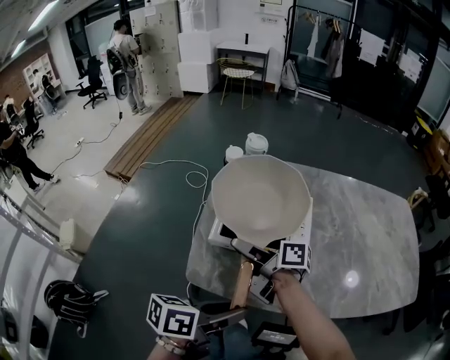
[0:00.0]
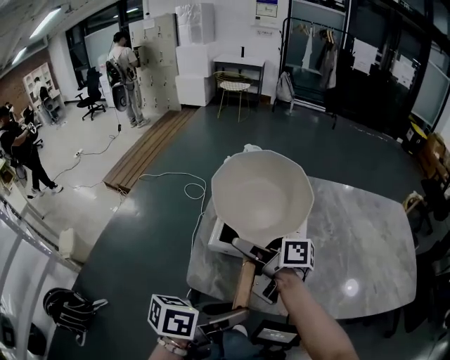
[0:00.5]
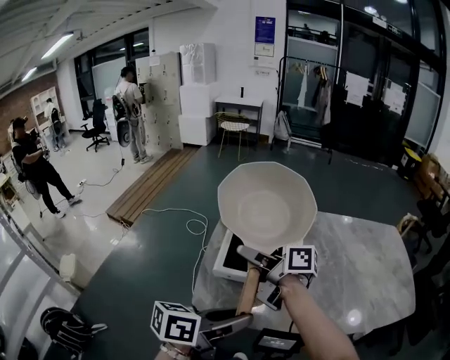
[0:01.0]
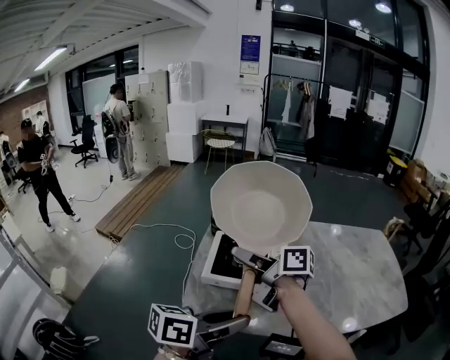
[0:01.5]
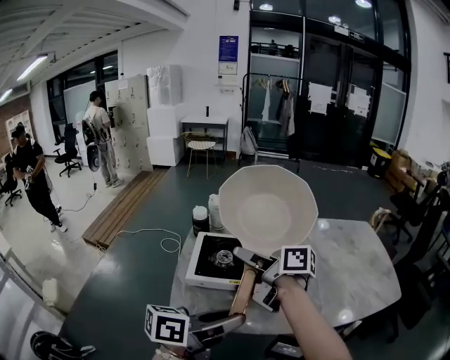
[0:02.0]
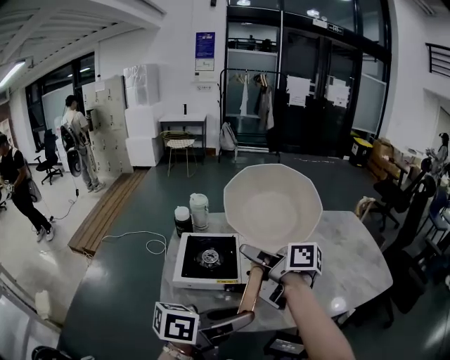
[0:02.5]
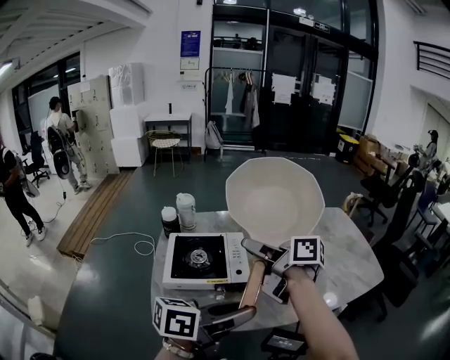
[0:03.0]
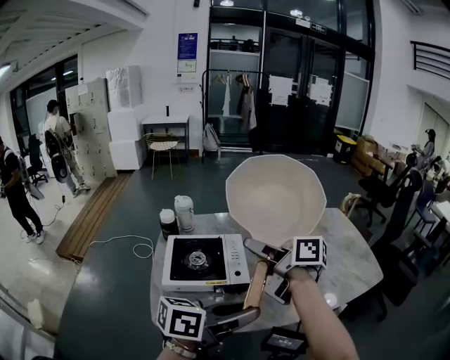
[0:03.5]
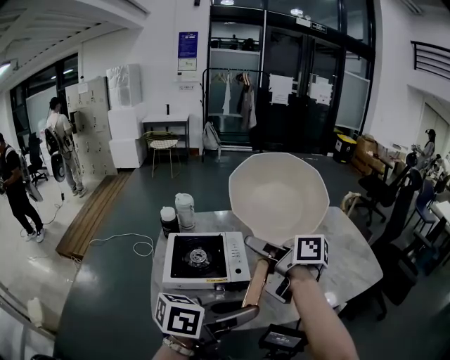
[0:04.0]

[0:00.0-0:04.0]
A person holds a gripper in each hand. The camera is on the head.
0:00.0 to 0:02.0: The right gripper travels upward and to the right by approximately 15 cm, and changes its angle by roughly 20 degrees. Meanwhile the left gripper shifts approximately 10 cm upward, and turns by roughly 20 degrees.
0:02.0 to 0:04.0: The left gripper moves to the right, some 5 cm. Meanwhile the right gripper goes approximately 10 cm to the right.

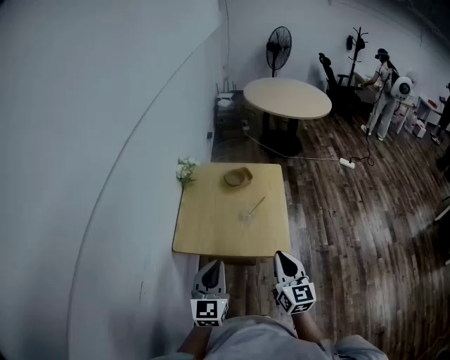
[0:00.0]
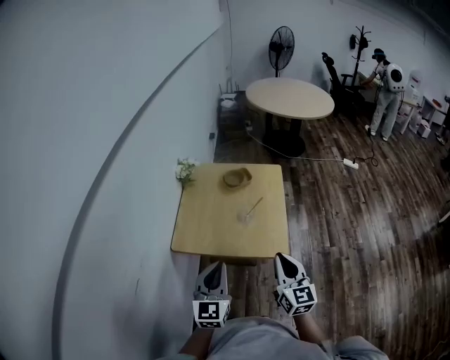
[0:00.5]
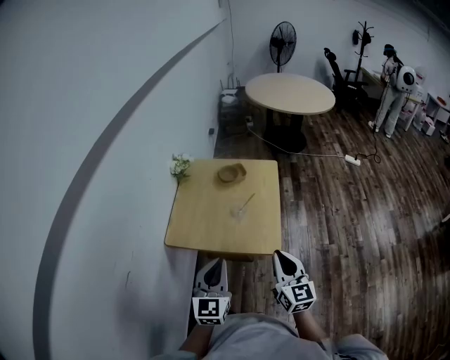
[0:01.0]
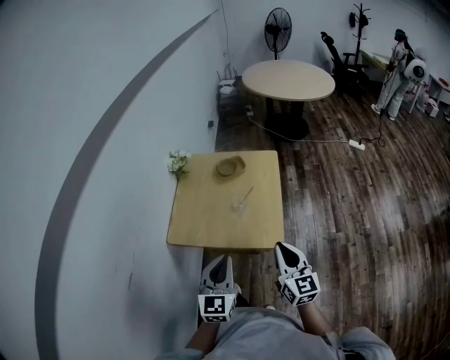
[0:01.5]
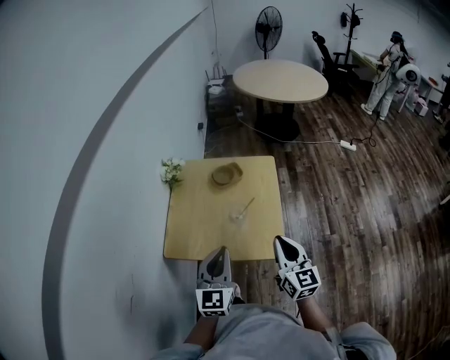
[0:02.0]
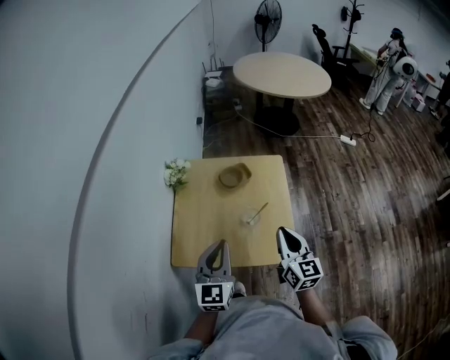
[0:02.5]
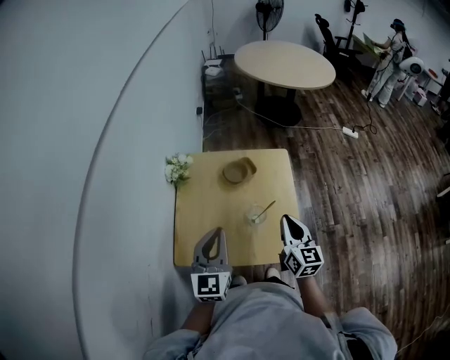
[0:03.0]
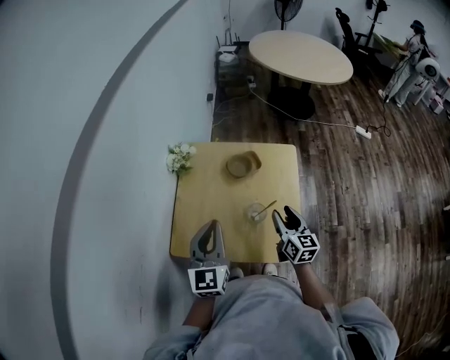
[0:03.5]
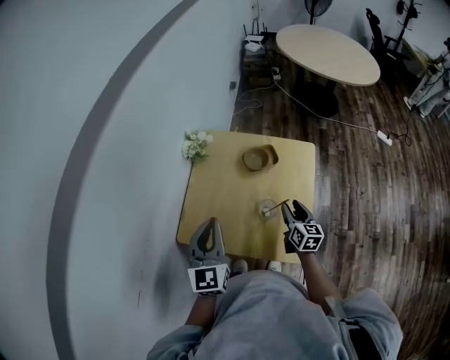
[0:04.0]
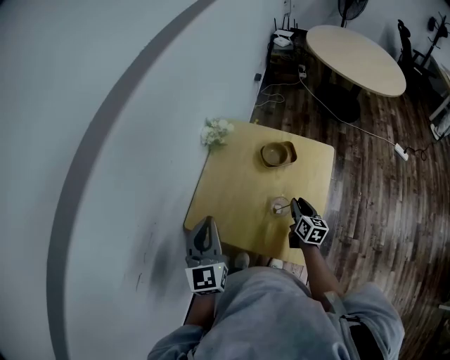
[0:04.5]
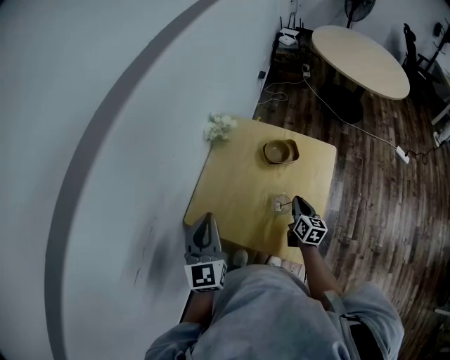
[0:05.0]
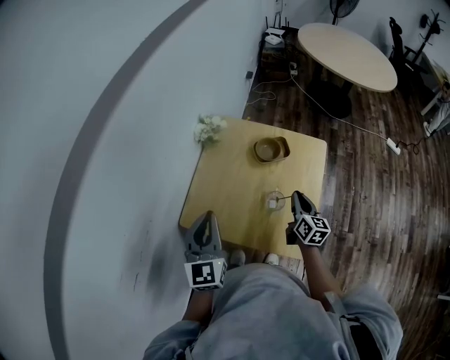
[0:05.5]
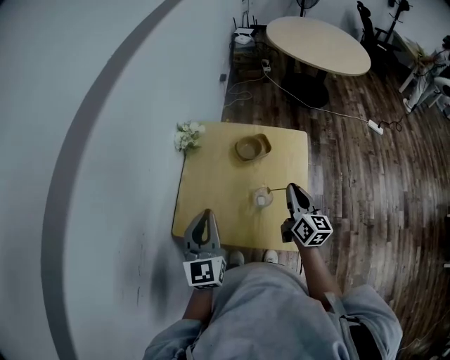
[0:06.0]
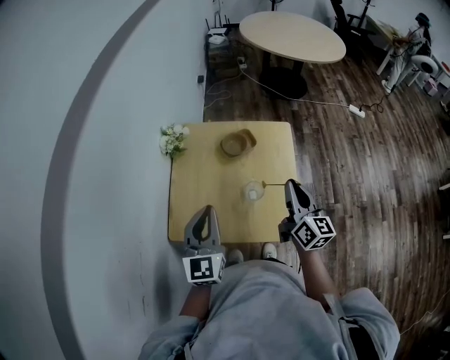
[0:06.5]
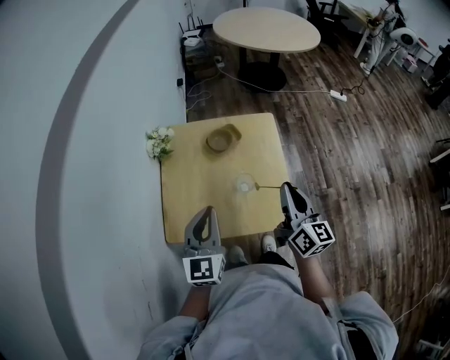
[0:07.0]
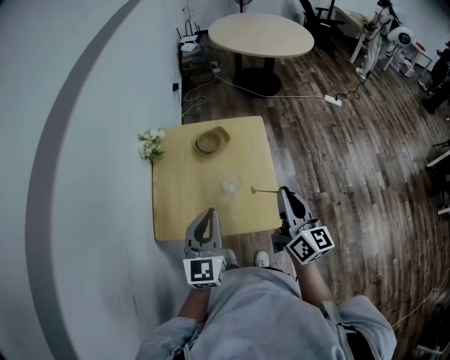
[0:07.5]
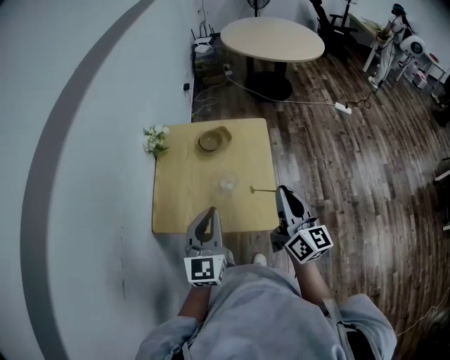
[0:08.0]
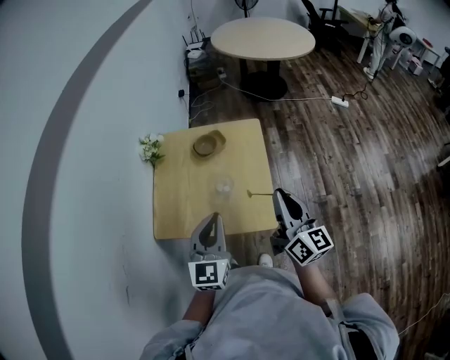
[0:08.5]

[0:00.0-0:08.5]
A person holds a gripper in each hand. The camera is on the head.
0:00.0 to 0:02.0: Both grippers move forward and to the right, roughly 10 cm.
0:02.0 to 0:04.0: The right gripper is displaced forward and downward by some 30 cm, rotates approximately 20 degrees, and opens its fingers, while the left gripper travels forward and to the left by roughly 15 cm.
0:04.0 to 0:06.5: The right gripper moves upward, about 15 cm, swivels about 20 degrees, and closes.
0:06.5 to 0:08.5: The right gripper heads backward, to the right and upward, covering roughly 15 cm, while the left gripper travels to the right and backward by some 15 cm.

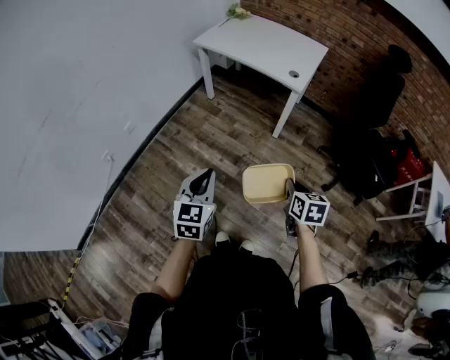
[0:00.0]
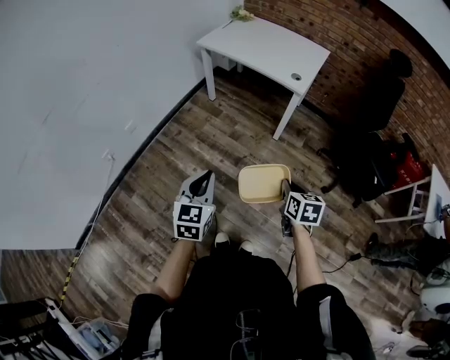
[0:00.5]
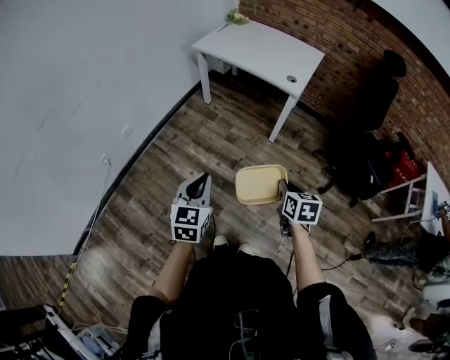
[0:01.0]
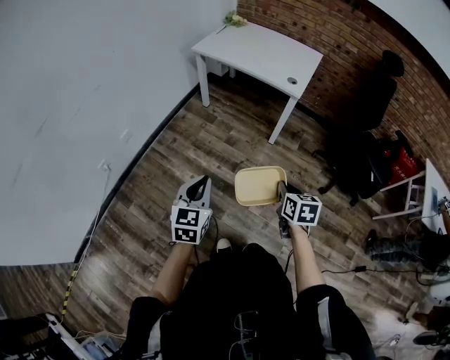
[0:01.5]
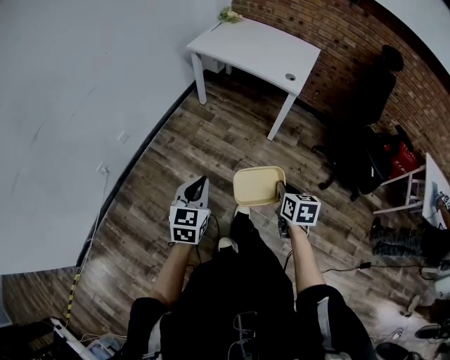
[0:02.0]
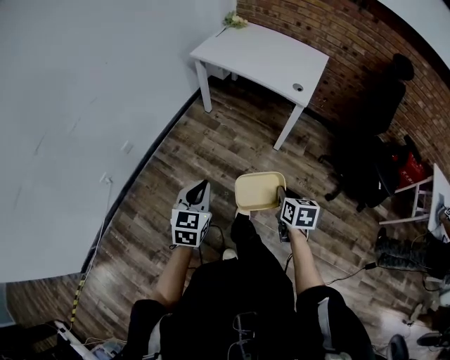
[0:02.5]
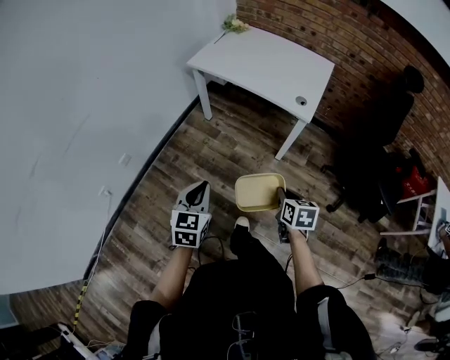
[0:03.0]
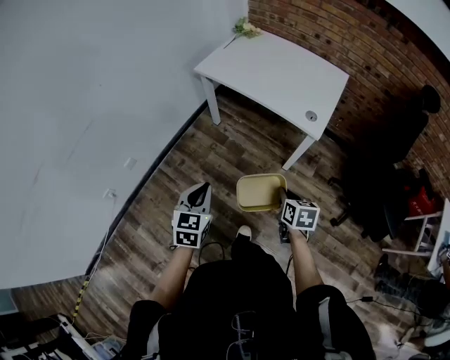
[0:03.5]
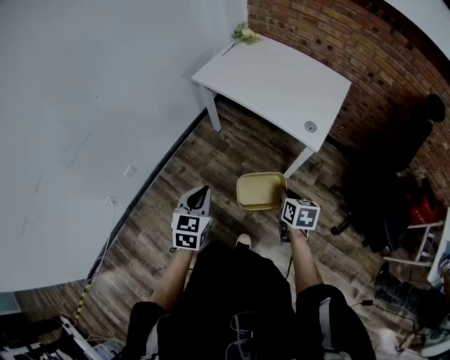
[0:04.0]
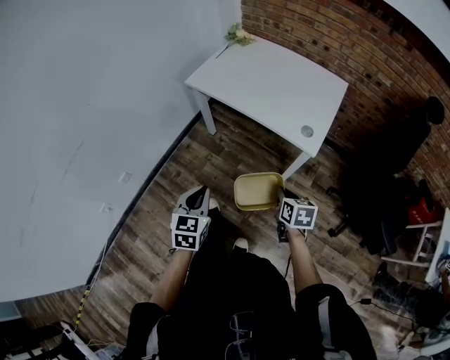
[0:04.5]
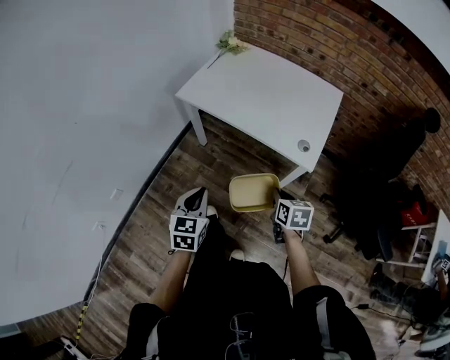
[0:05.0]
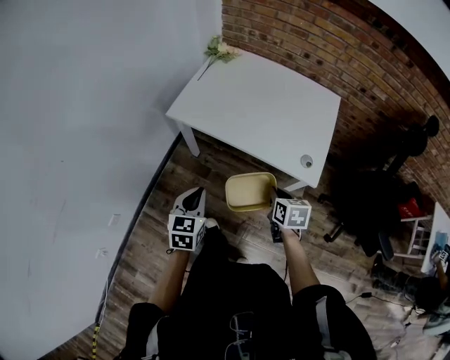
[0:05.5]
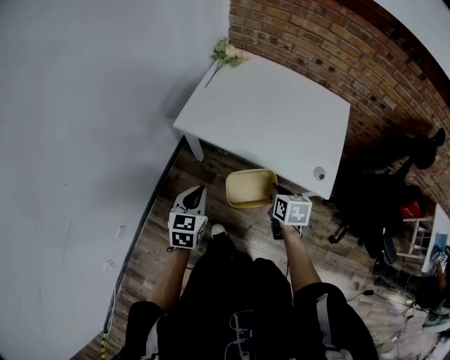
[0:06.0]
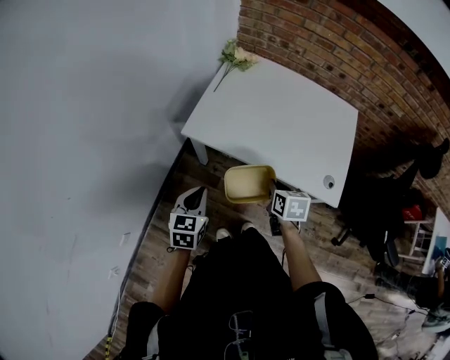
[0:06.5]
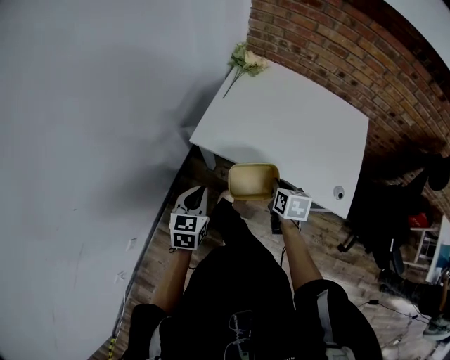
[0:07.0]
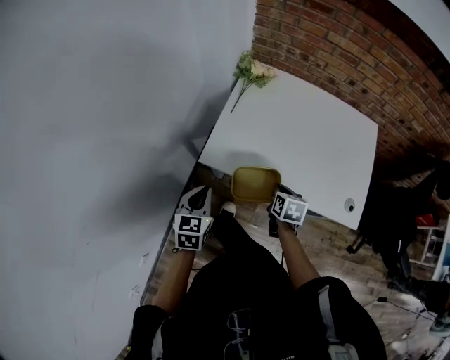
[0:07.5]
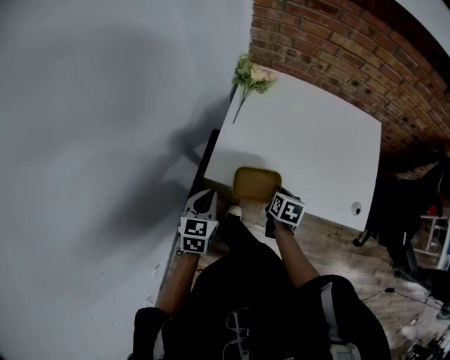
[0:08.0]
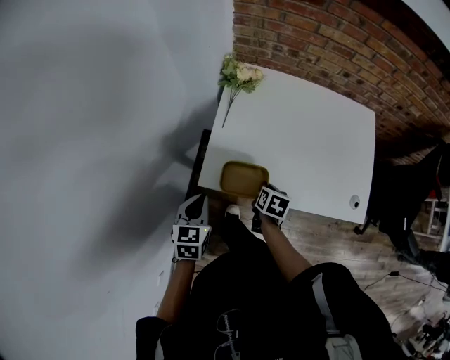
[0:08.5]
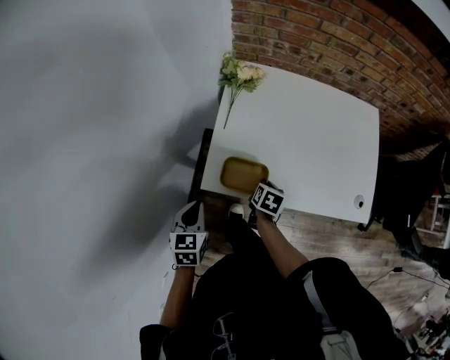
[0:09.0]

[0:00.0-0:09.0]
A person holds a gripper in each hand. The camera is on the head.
0:00.0 to 0:02.0: Both grippers travel together to the left, roughly 10 cm.
0:02.0 to 0:04.5: Both grippers move forward, about 35 cm.
0:04.5 to 0:07.0: The two grippers travel together, forward and to the left, some 40 cm.
0:07.0 to 0:09.0: The right gripper goes some 20 cm forward, to the left and downward, and rotates roughly 30 degrees, while the left gripper heads forward and to the left, covering approximately 20 cm.

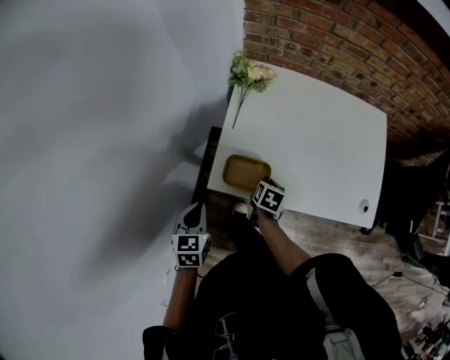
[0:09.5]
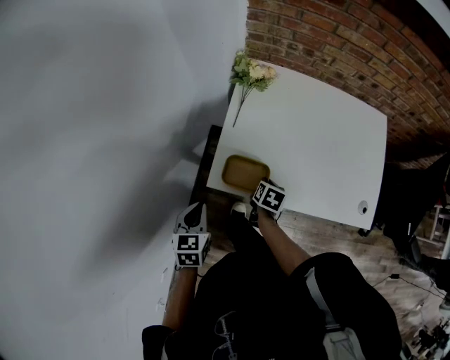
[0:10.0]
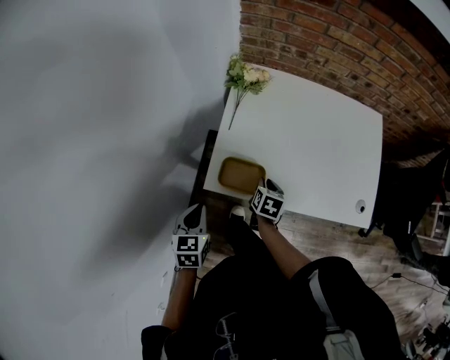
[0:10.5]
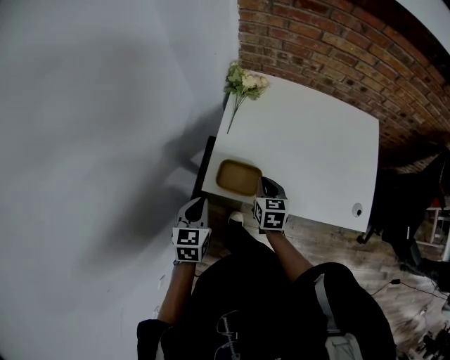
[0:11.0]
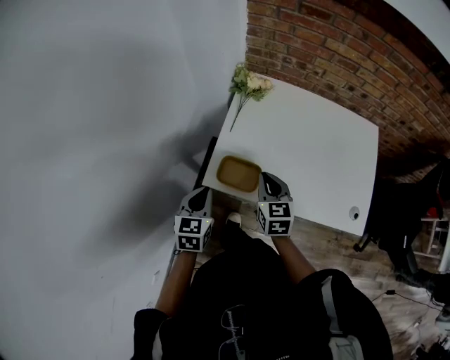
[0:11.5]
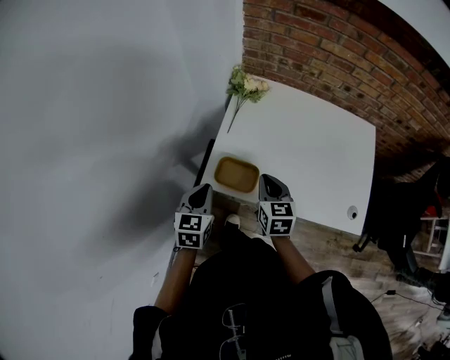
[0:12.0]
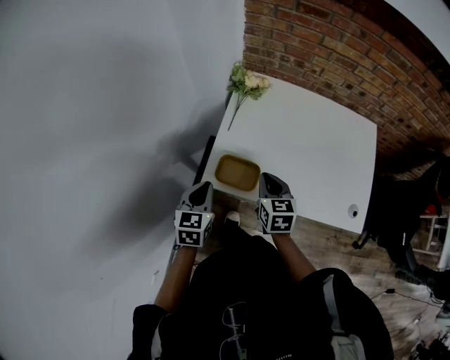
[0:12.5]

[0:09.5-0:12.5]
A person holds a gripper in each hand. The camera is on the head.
0:09.5 to 0:11.0: The right gripper heads upward, covering about 10 cm, and changes its angle by approximately 30 degrees.
0:11.0 to 0:12.5: The right gripper heads upward, covering about 5 cm.

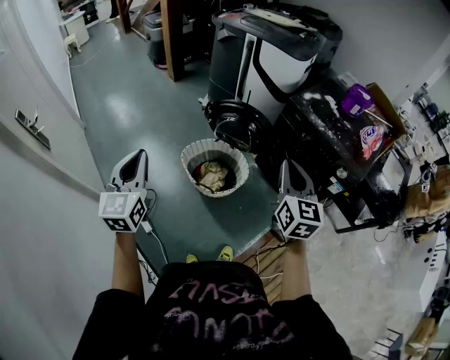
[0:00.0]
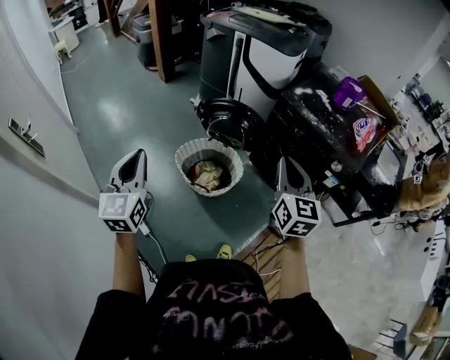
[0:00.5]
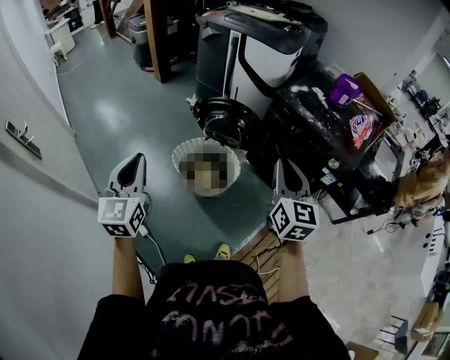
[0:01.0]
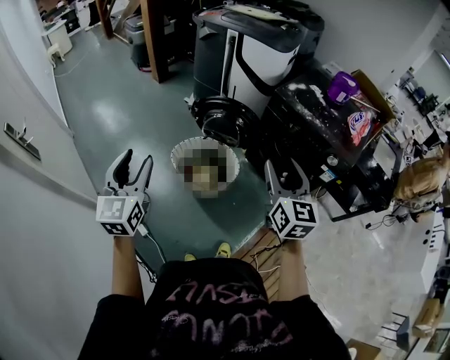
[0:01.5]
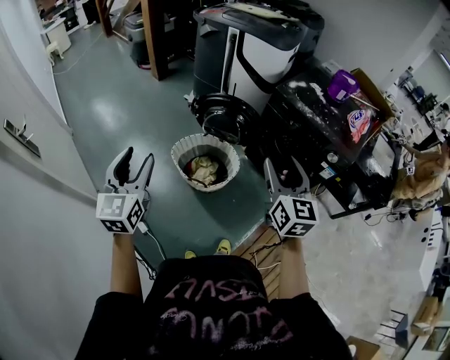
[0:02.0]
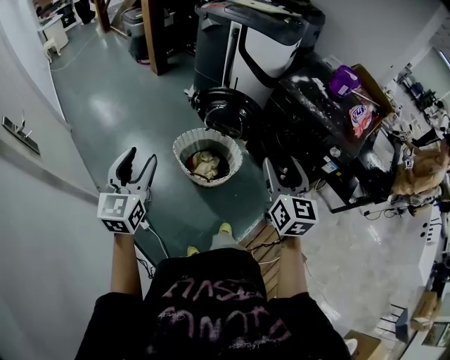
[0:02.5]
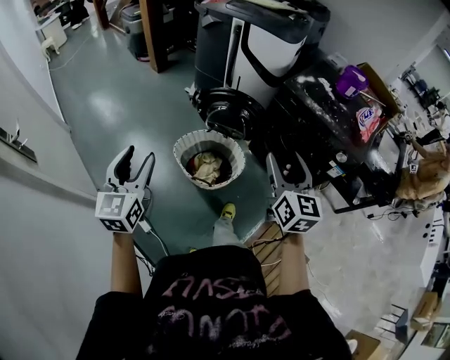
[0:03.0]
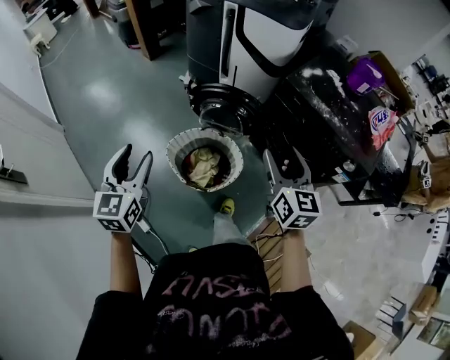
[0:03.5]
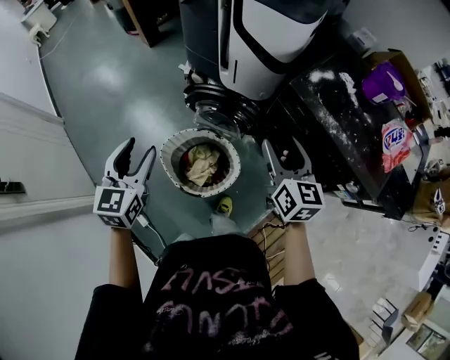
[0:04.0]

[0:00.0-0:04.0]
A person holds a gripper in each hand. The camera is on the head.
0:00.0 to 0:02.0: The right gripper opens, while the left gripper opens its fingers.
0:02.0 to 0:04.0: Both grippers move forward, some 30 cm.
